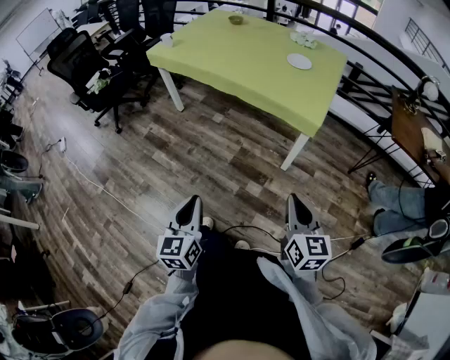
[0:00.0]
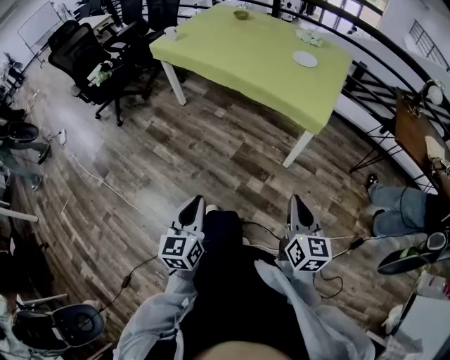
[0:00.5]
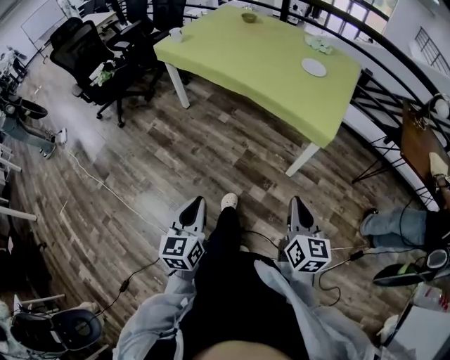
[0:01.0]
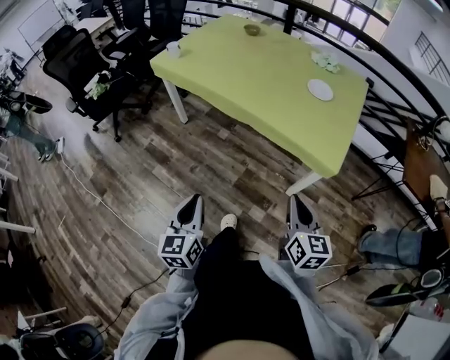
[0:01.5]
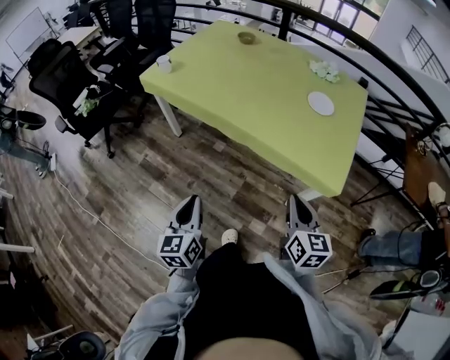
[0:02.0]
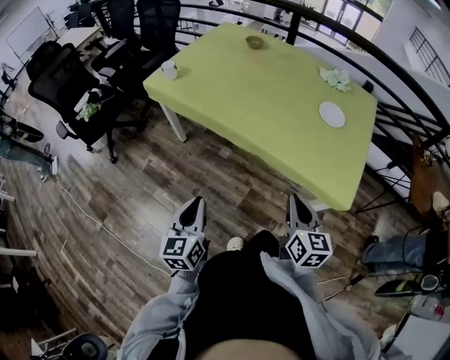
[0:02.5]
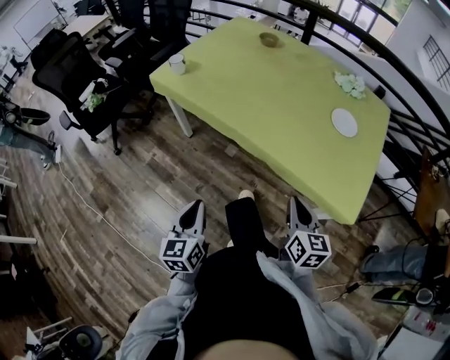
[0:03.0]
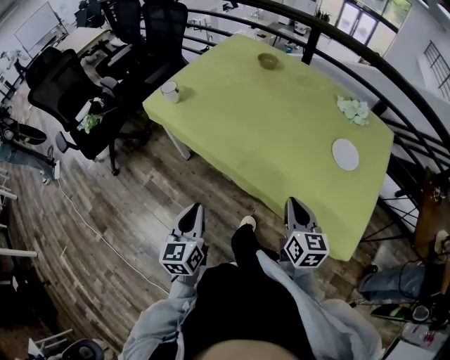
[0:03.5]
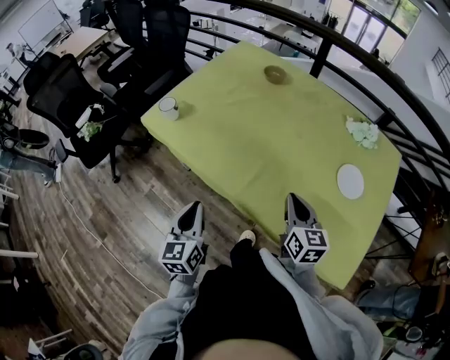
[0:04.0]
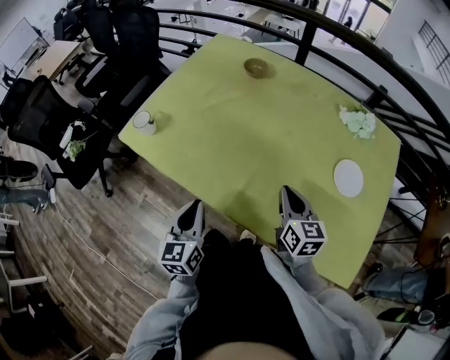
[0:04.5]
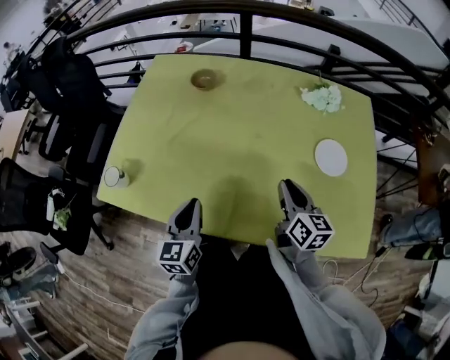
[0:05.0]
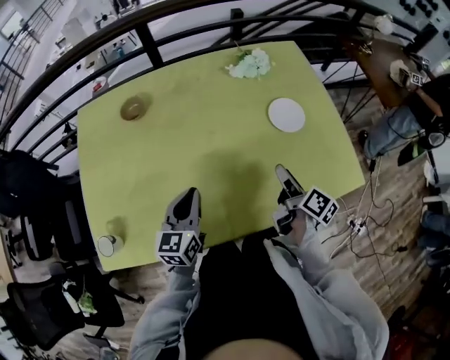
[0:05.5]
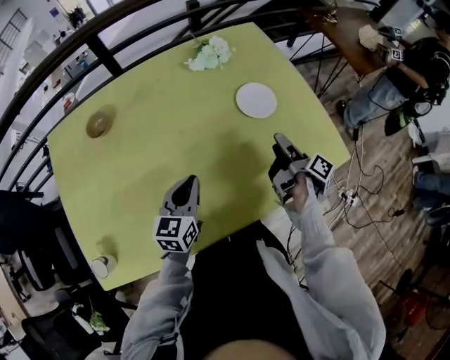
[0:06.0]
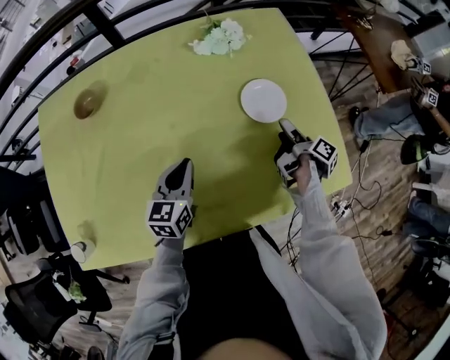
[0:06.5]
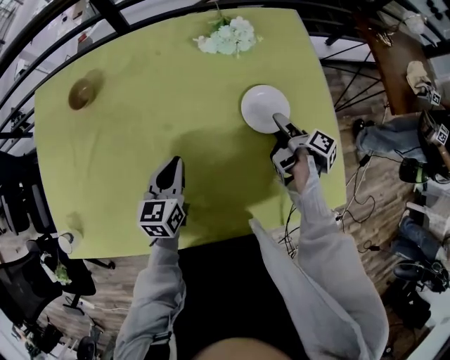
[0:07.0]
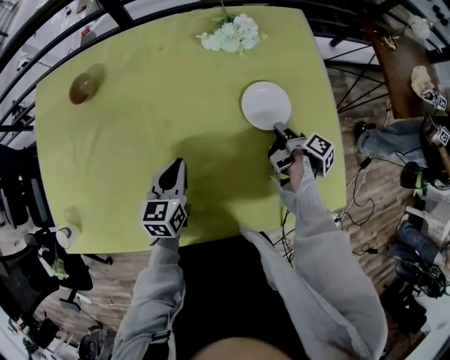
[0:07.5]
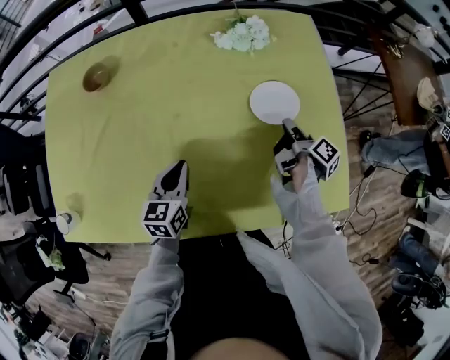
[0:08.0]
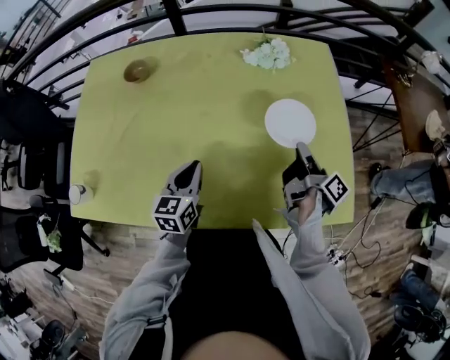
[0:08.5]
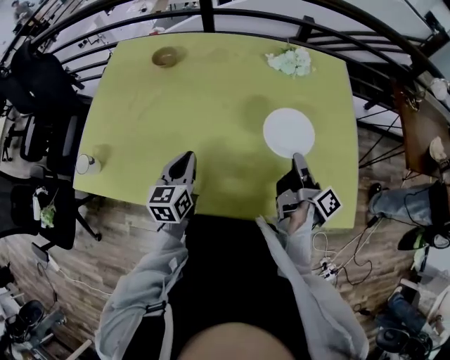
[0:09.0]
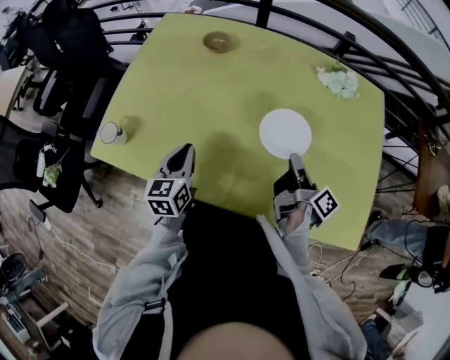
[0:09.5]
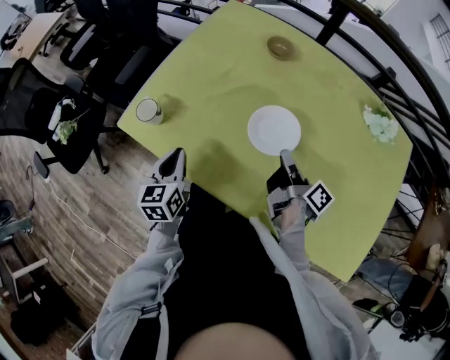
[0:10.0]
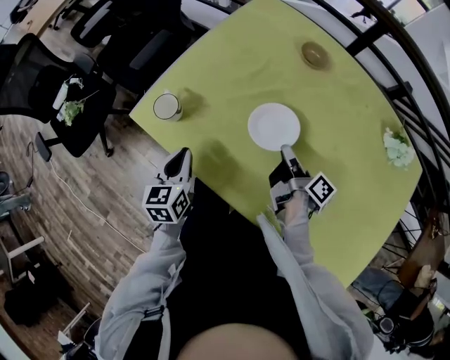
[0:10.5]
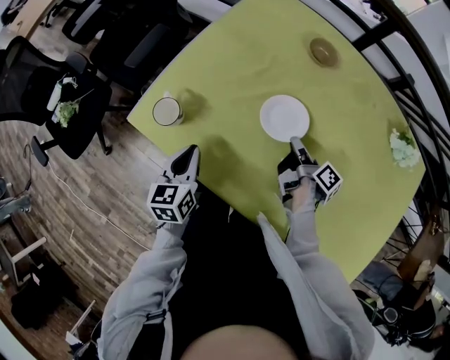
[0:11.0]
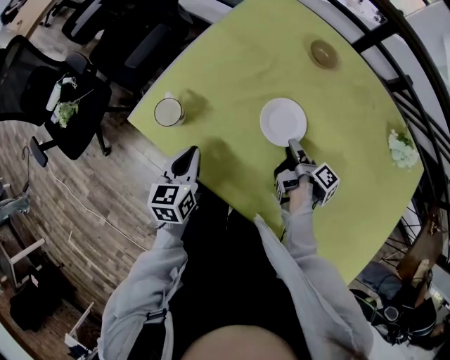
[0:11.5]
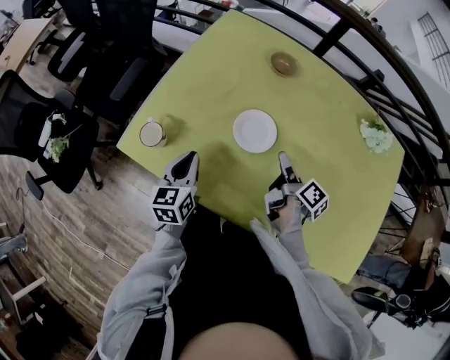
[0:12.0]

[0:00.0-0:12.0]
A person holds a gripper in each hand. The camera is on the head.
0:00.0 to 0:02.0: Both grippers travel together forward, some 30 cm.
0:02.0 to 0:04.0: Both grippers move forward, roughly 35 cm.
0:04.0 to 0:06.0: The left gripper shifts by some 30 cm, and swivels about 70 degrees. The right gripper moves approximately 20 cm, rotates around the line of its fingers by some 80 degrees, clockwise from behind, and opens up.
0:06.0 to 0:08.0: The right gripper is displaced forward and downward by some 15 cm, and closes up. Meanwhile the left gripper heads downward, covering about 5 cm, and rotates roughly 20 degrees.
0:08.0 to 0:10.0: The left gripper shifts by some 35 cm, and swivels roughly 40 degrees, while the right gripper changes place by about 40 cm, and rotates approximately 40 degrees.
0:10.0 to 0:12.0: The right gripper reaches approximately 10 cm downward, then returns, and opens; the left gripper travels forward by some 5 cm.

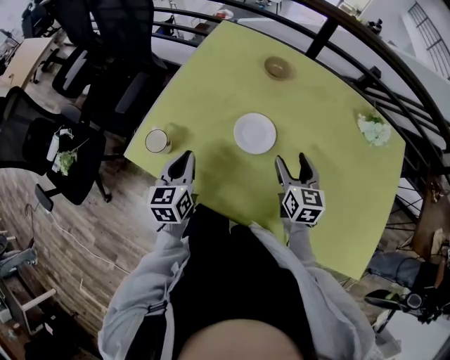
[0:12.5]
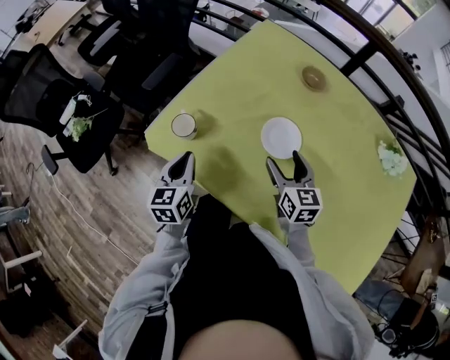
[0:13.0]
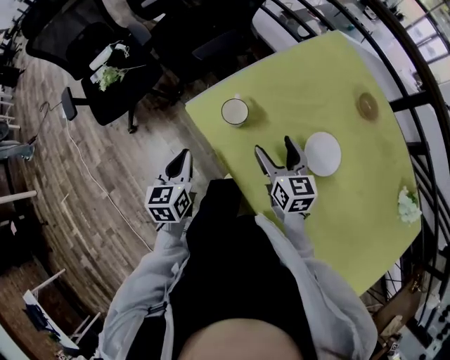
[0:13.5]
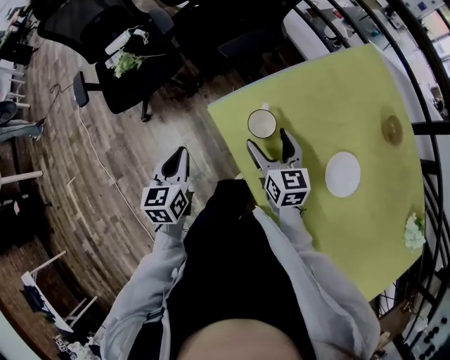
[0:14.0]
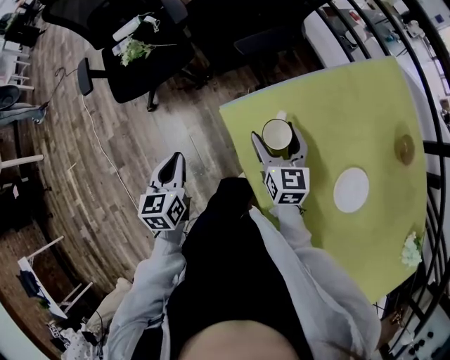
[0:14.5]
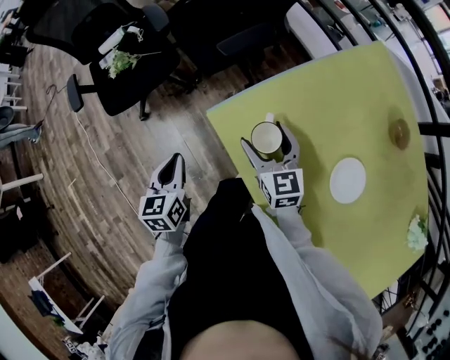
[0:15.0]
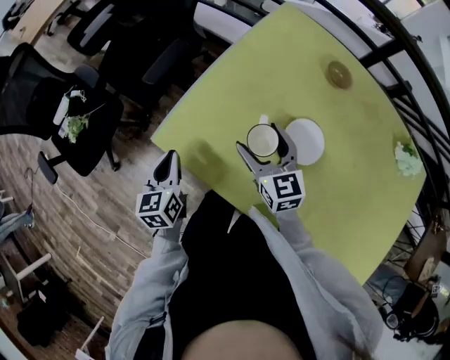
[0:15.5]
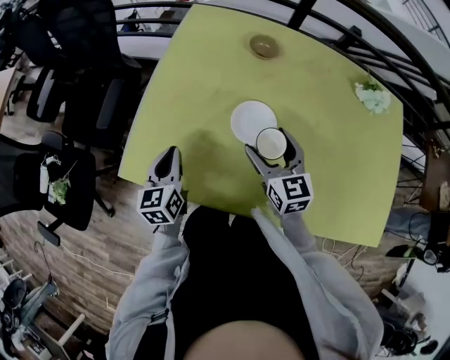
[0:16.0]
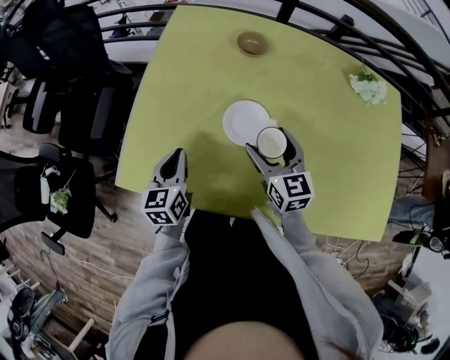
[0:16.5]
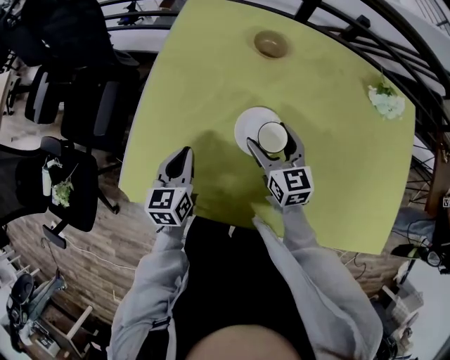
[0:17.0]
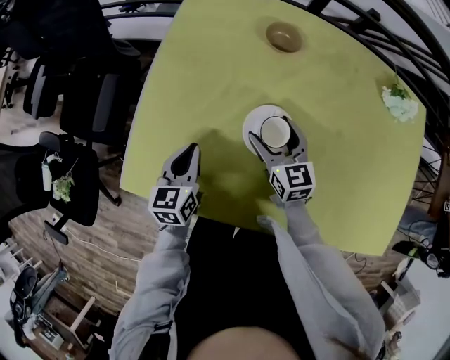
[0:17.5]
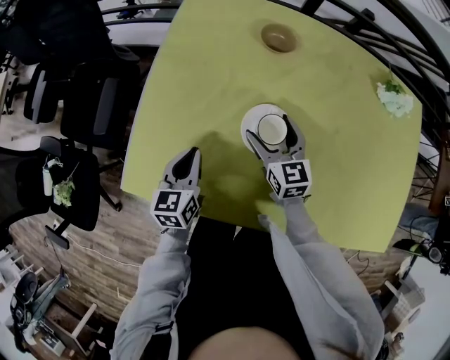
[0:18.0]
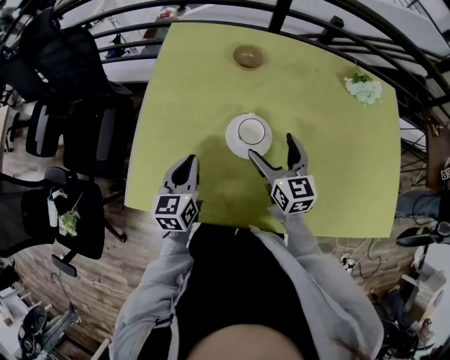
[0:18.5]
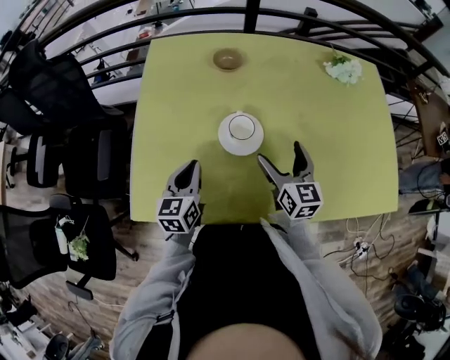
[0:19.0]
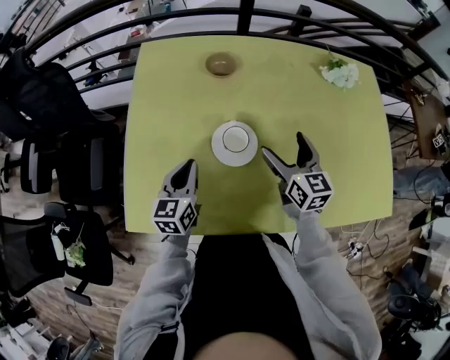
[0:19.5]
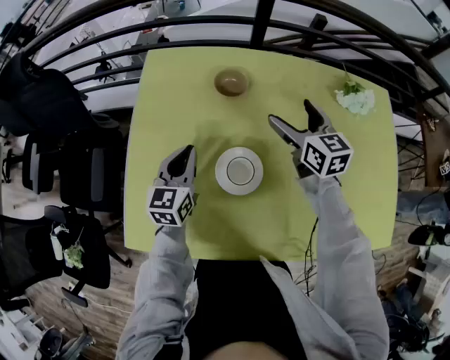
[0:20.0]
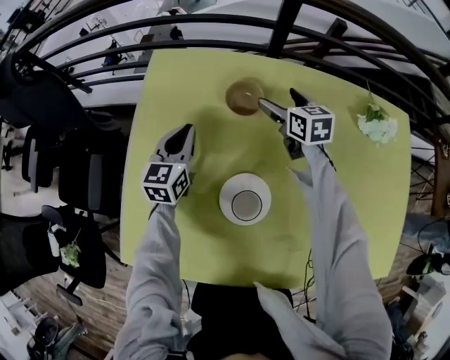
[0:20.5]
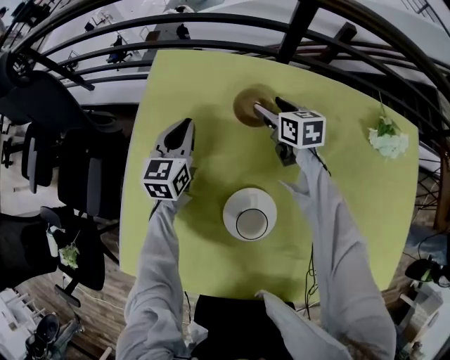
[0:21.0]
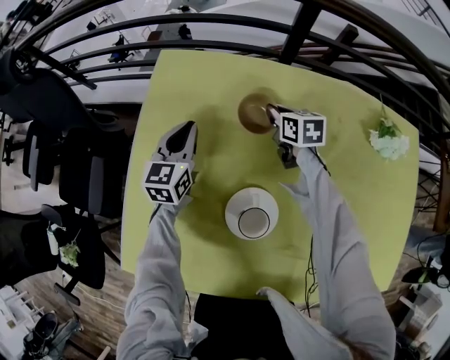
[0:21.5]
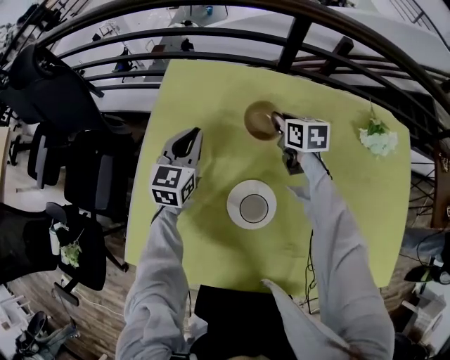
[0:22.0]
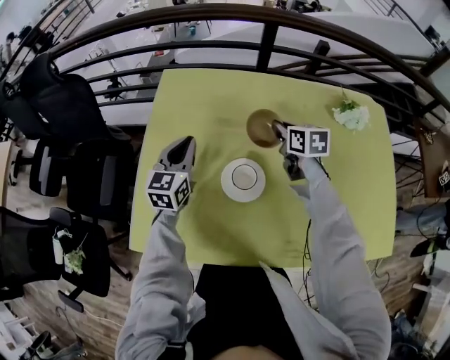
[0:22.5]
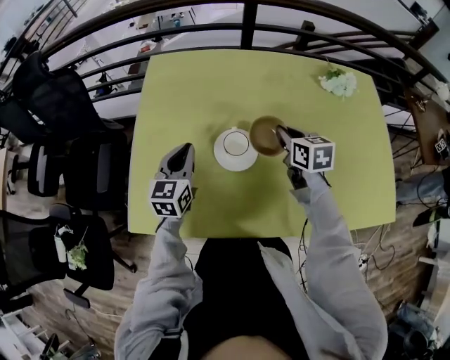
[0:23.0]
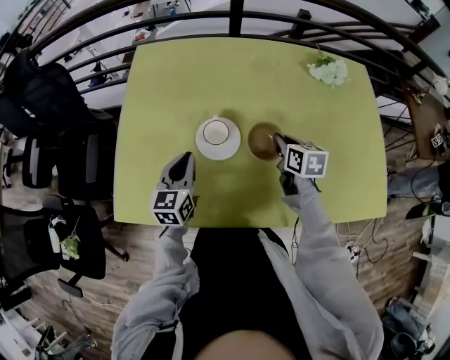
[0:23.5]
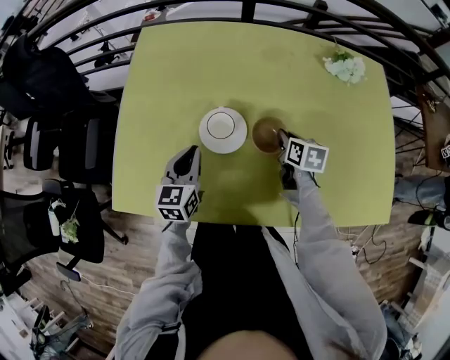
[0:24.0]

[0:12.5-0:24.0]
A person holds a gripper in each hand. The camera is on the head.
0:12.5 to 0:14.5: The right gripper ends up some 40 cm from where it was, and turns by approximately 50 degrees; the left gripper shifts by roughly 35 cm, and turns by some 40 degrees.
0:14.5 to 0:16.5: The left gripper changes place by roughly 35 cm, and changes its angle by some 50 degrees; the right gripper changes place by approximately 35 cm, and changes its angle by roughly 40 degrees.
0:16.5 to 0:18.5: The right gripper reaches some 10 cm forward, then returns.
0:18.5 to 0:20.0: The right gripper shifts approximately 20 cm forward and to the right. The left gripper shifts roughly 15 cm forward.
0:20.0 to 0:22.0: The left gripper goes about 15 cm forward. Meanwhile the right gripper travels forward, downward and to the left by some 20 cm, and closes.
0:22.0 to 0:24.0: The right gripper shifts roughly 30 cm backward and to the right, and rotates about 20 degrees. Meanwhile the left gripper is displaced backward by about 25 cm.

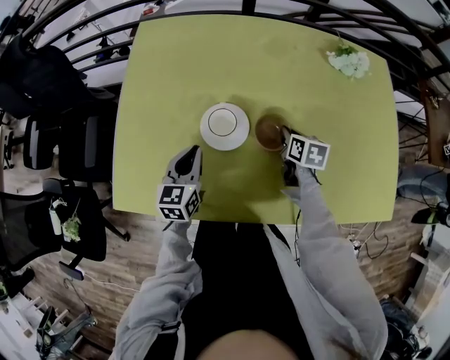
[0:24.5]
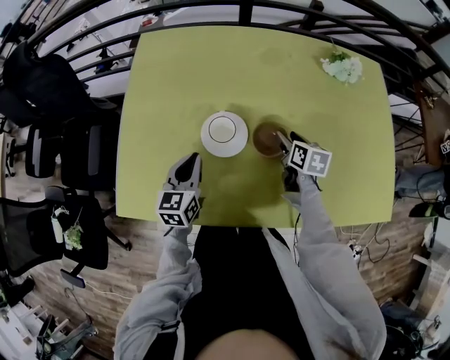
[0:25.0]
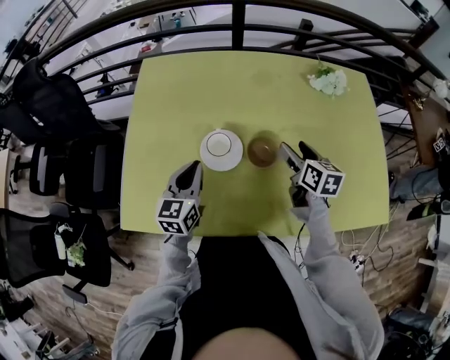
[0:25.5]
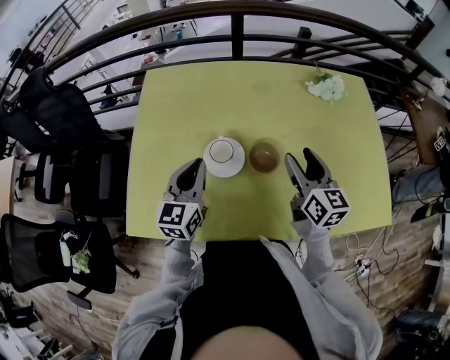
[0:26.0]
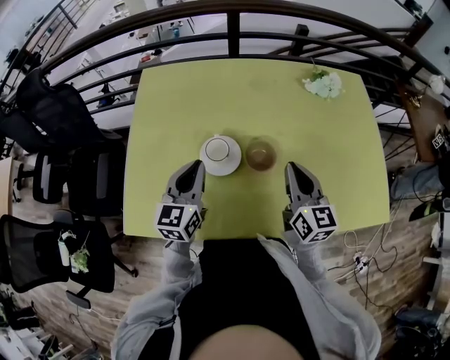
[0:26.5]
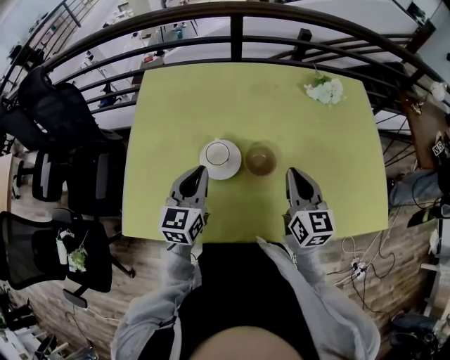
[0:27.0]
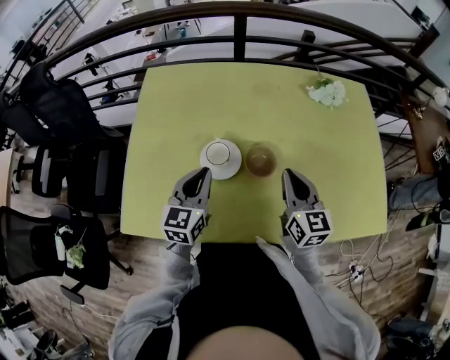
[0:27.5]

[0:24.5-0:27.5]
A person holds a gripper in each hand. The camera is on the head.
0:24.5 to 0:26.0: The left gripper is displaced upward by approximately 15 cm. The right gripper shifts roughly 20 cm upward, tilts its fingers some 40 degrees upward, and opens up.
0:26.0 to 0:27.5: The right gripper closes.
